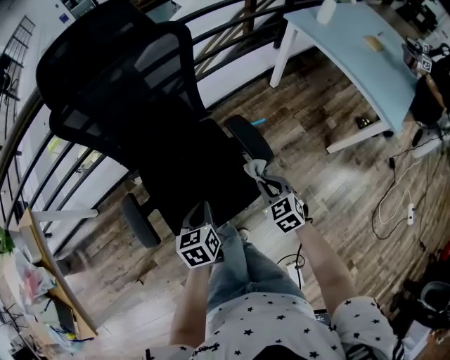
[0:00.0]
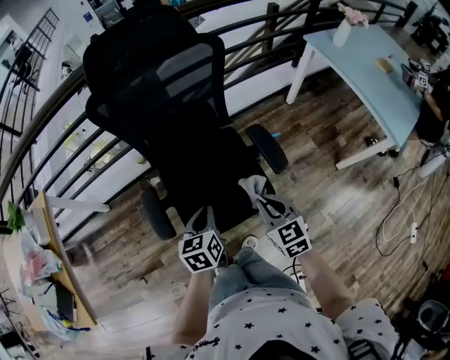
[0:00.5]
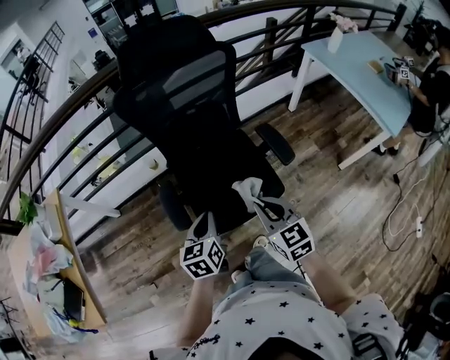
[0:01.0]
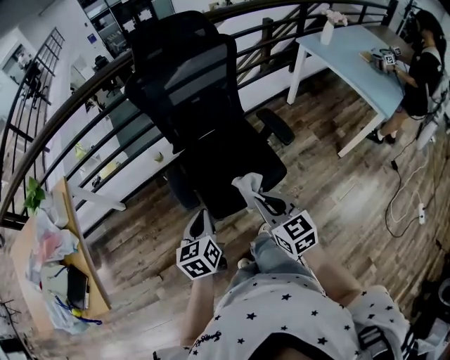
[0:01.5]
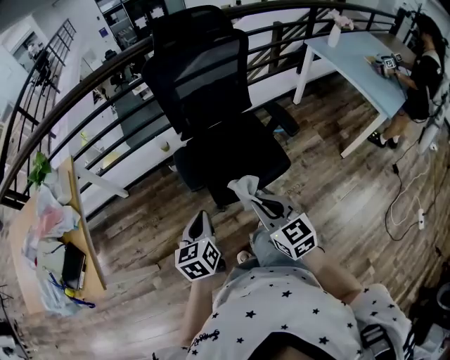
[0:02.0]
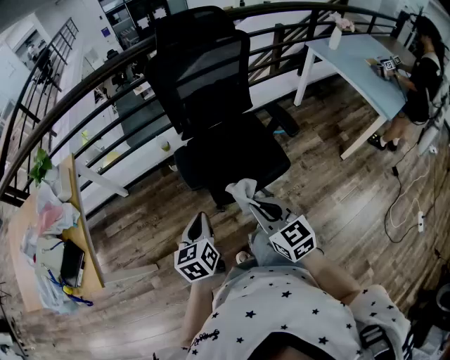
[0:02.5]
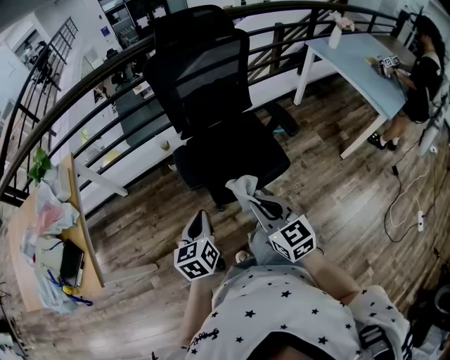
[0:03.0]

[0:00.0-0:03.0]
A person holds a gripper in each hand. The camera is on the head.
0:00.0 to 0:01.5: The right gripper is displaced to the left, upward and backward by some 35 cm, and changes its angle by roughly 30 degrees. The left gripper is displaced to the left, backward and upward by approximately 30 cm.
0:01.5 to 0:03.0: The right gripper is displaced backward and to the left by roughly 10 cm; the left gripper goes about 5 cm backward.

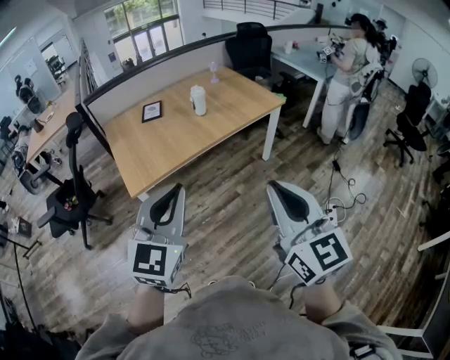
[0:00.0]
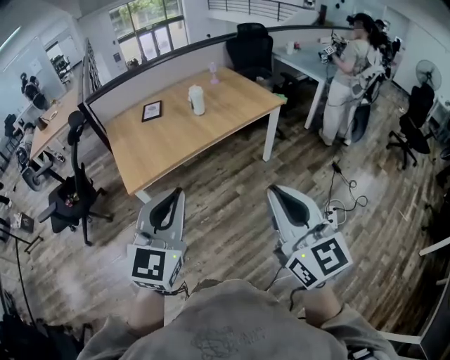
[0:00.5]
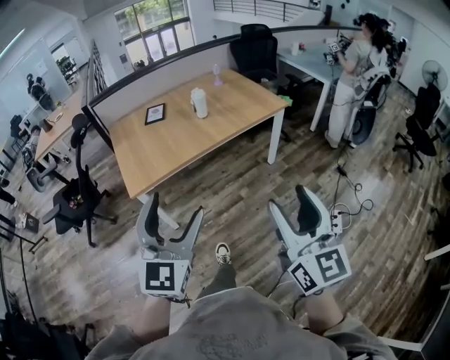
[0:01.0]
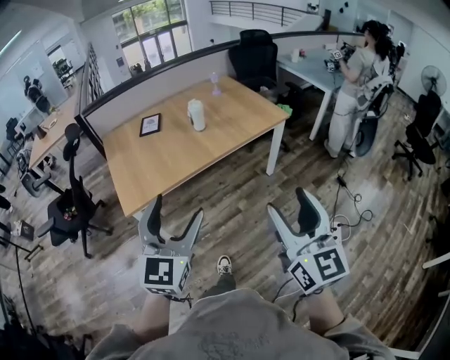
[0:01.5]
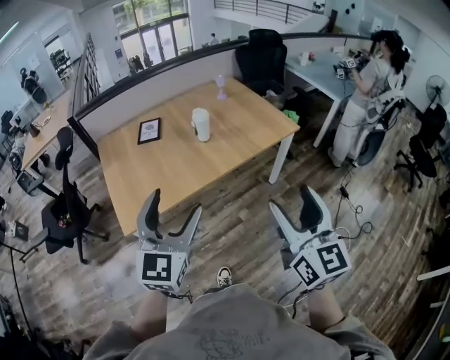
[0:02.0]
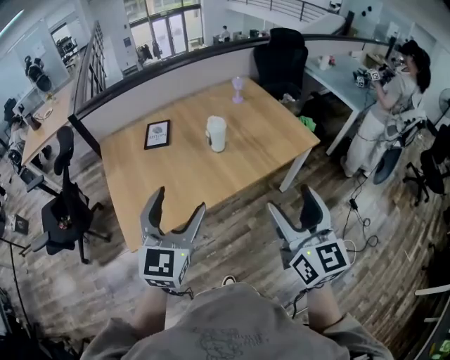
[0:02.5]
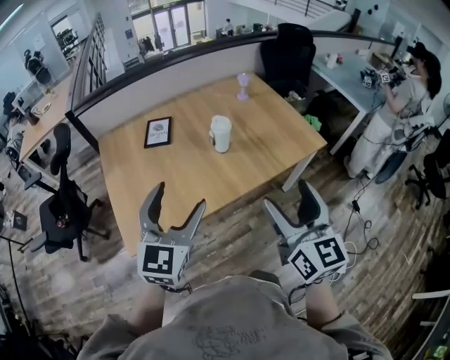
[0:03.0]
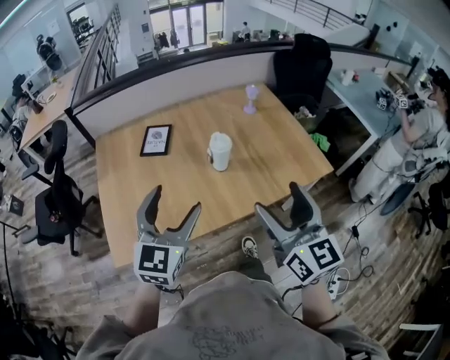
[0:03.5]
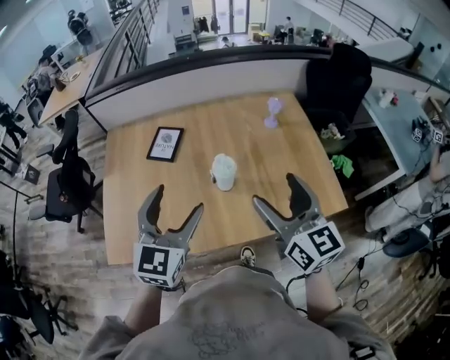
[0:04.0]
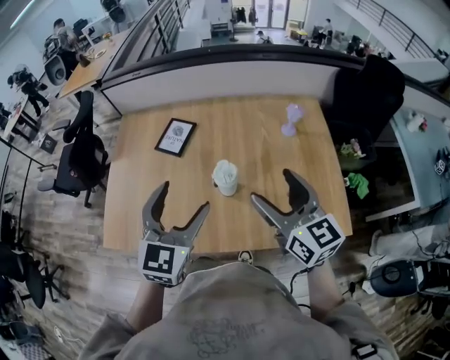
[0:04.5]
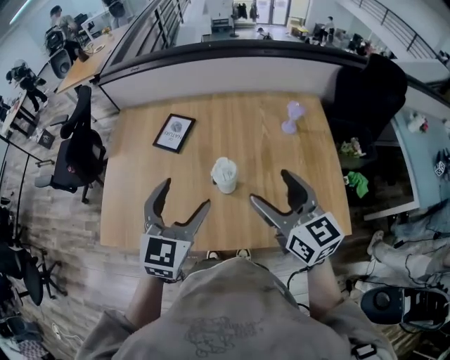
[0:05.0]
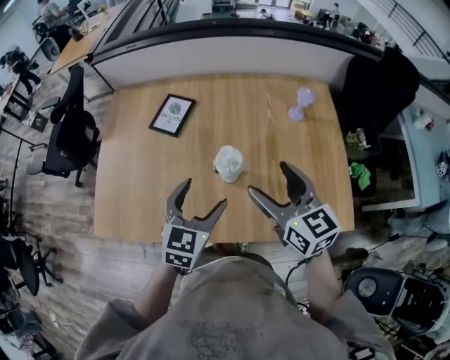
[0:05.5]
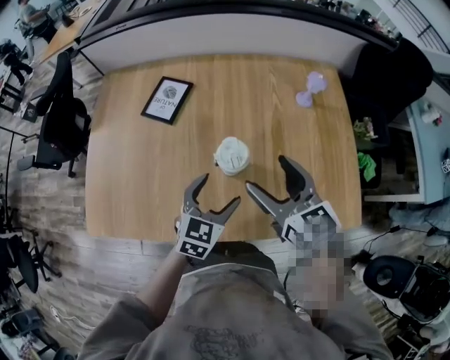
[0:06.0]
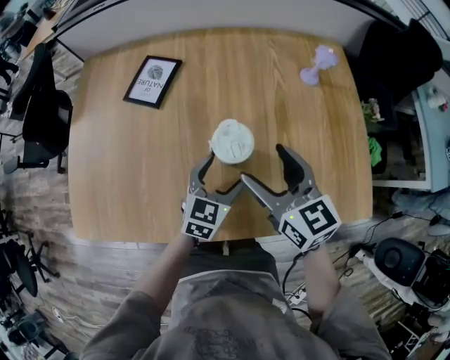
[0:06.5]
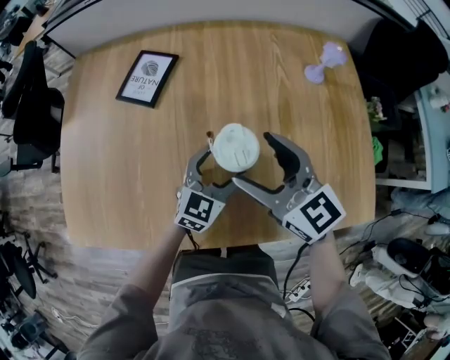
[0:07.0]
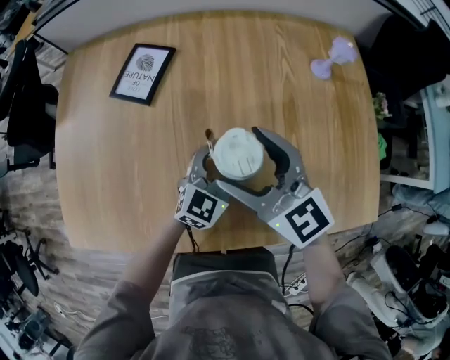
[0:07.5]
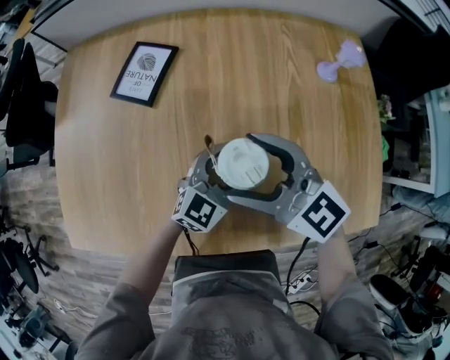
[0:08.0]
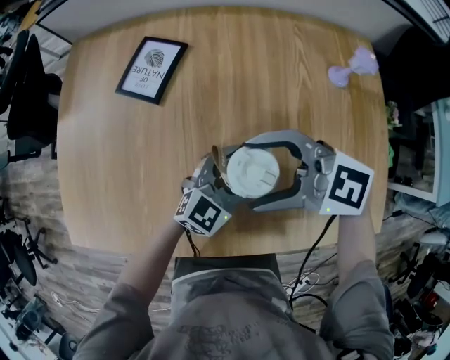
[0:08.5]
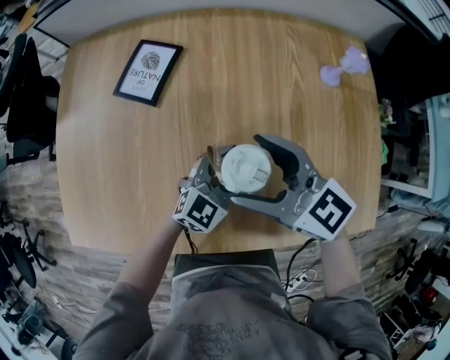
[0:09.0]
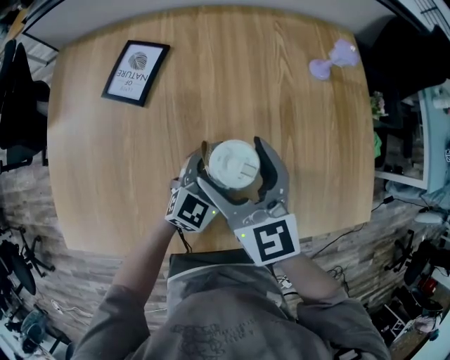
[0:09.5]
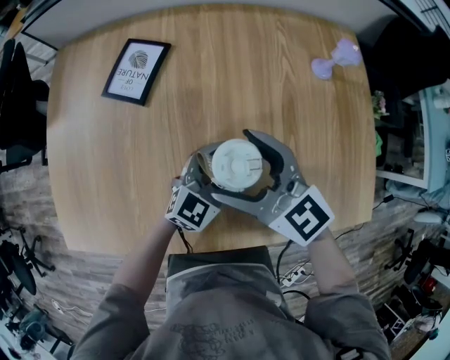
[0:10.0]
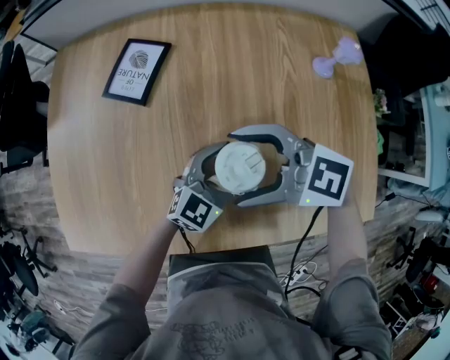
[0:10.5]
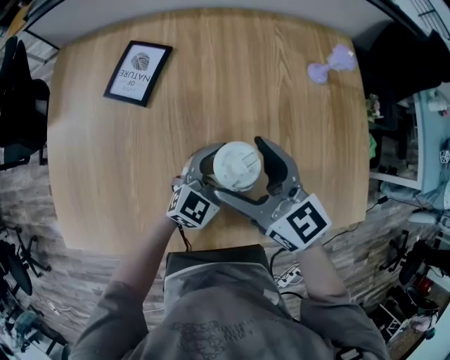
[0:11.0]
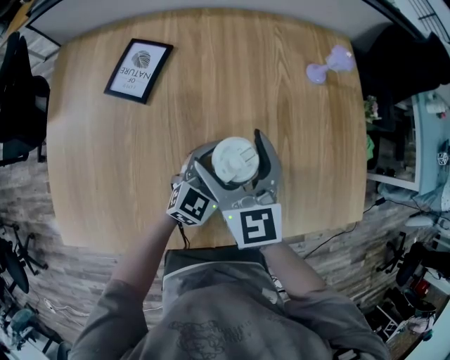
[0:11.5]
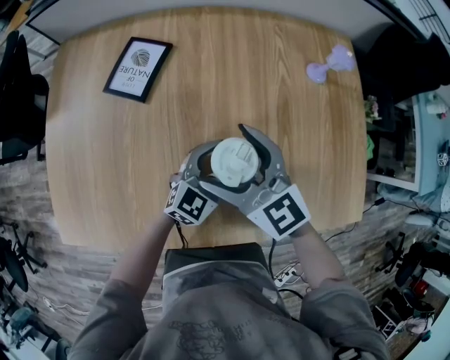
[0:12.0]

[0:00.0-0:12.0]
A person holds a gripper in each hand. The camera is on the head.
0:00.0 to 0:02.0: Both grippers move forward, about 25 cm. The right gripper opens its fingers. The left gripper opens.
0:02.0 to 0:04.0: The two grippers travel together, forward, about 50 cm. The right gripper rotates approximately 30 degrees.
0:04.0 to 0:06.0: The left gripper moves downward and to the right, approximately 25 cm, and swivels about 20 degrees; the right gripper heads downward and forward, covering about 20 cm, and changes its angle by approximately 20 degrees.
0:06.0 to 0:08.0: The left gripper goes roughly 15 cm downward and forward, and swivels approximately 20 degrees. Meanwhile the right gripper shifts roughly 10 cm downward and to the left, and turns by approximately 30 degrees.

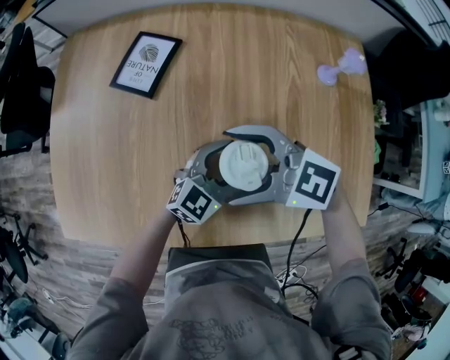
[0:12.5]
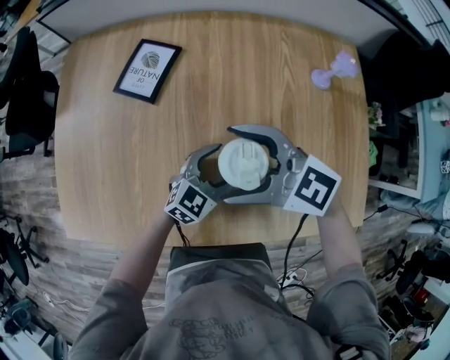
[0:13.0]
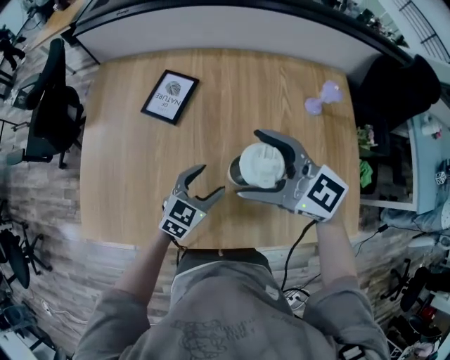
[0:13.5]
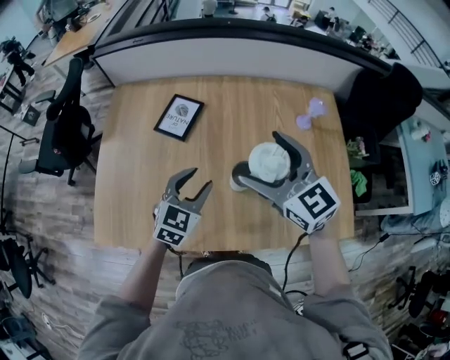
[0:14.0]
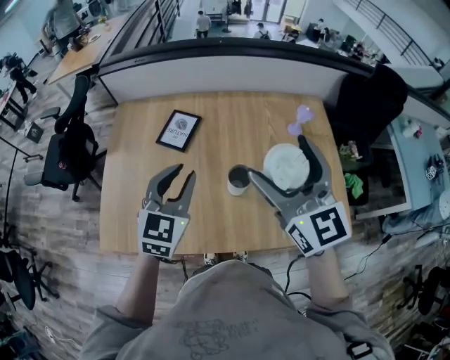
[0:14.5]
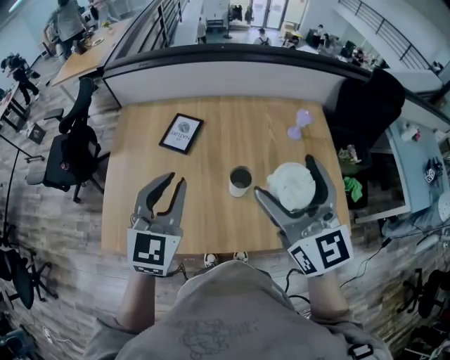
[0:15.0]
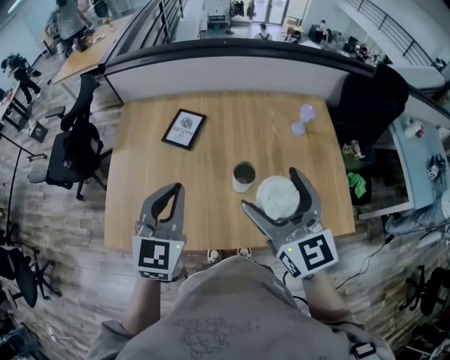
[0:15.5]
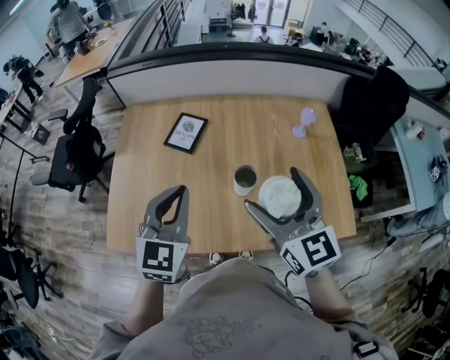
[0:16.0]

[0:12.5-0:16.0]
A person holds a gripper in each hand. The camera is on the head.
0:12.5 to 0:14.5: The two grippers go approximately 30 cm upward. The left gripper swivels approximately 30 degrees, and closes up, while the right gripper swivels about 60 degrees.
0:14.5 to 0:16.0: Both grippers travel together backward, some 5 cm.

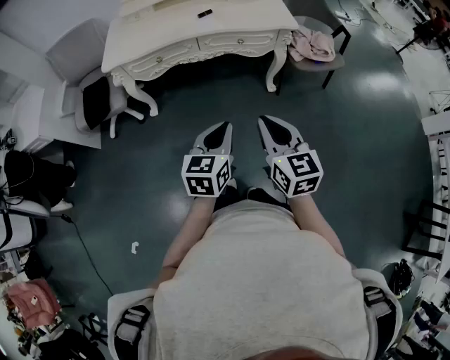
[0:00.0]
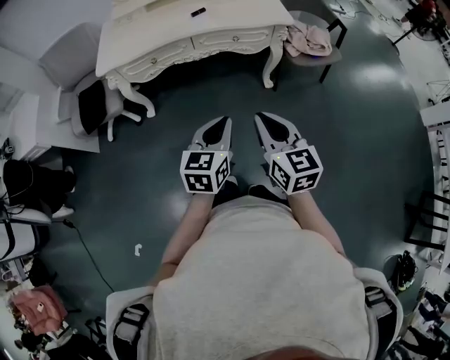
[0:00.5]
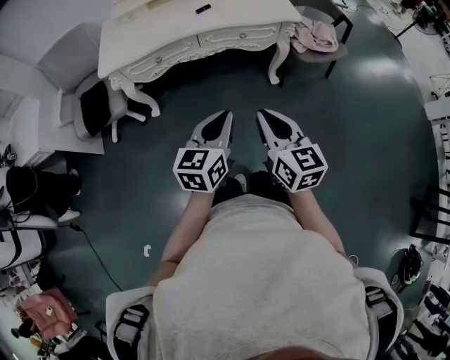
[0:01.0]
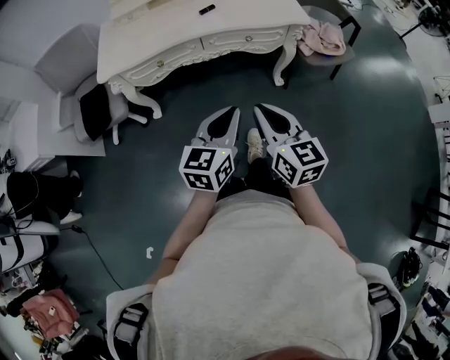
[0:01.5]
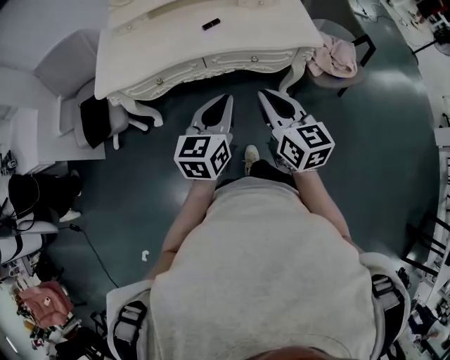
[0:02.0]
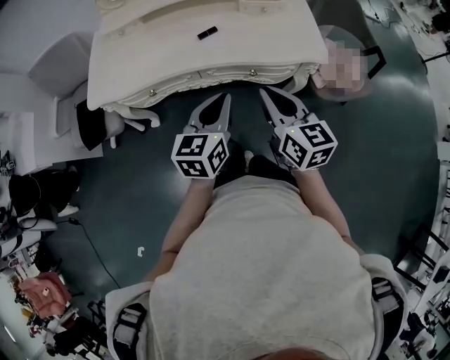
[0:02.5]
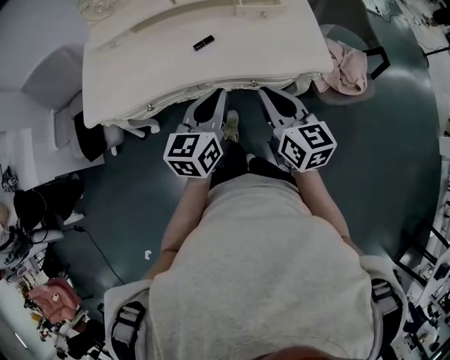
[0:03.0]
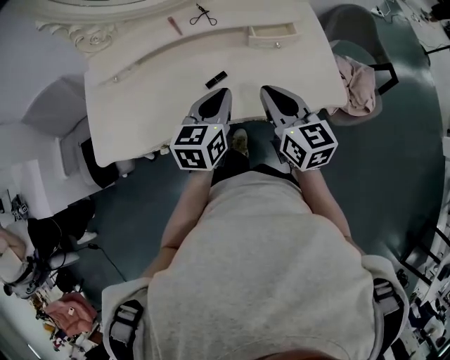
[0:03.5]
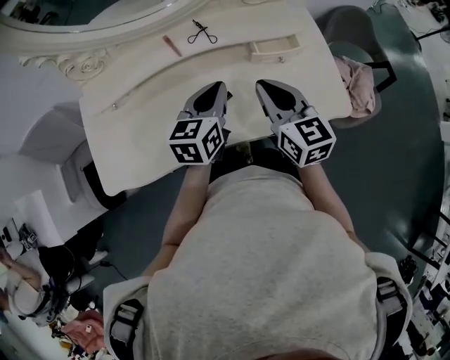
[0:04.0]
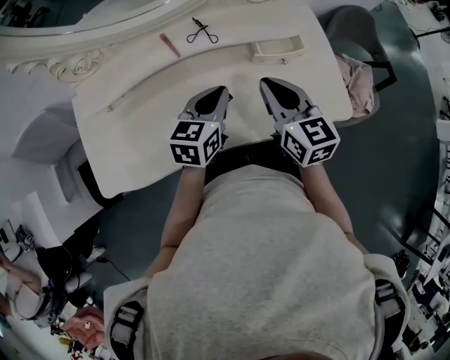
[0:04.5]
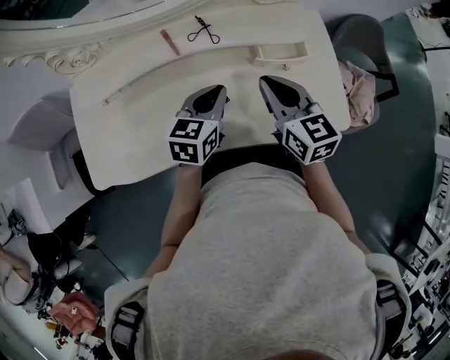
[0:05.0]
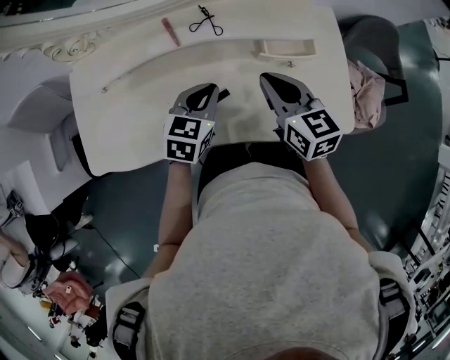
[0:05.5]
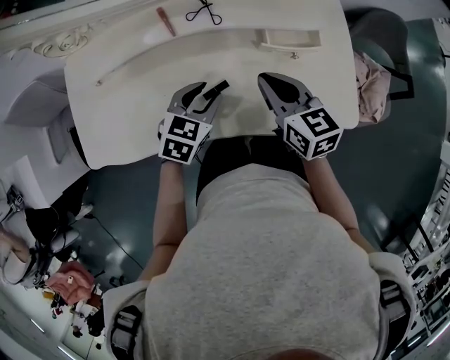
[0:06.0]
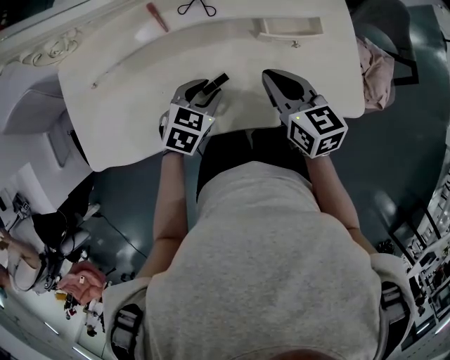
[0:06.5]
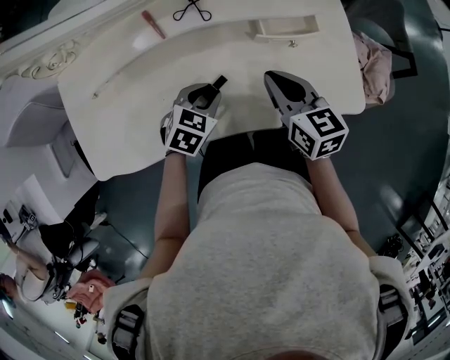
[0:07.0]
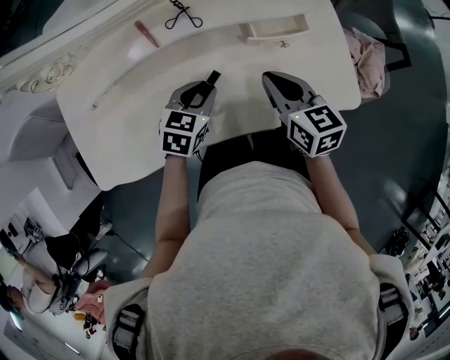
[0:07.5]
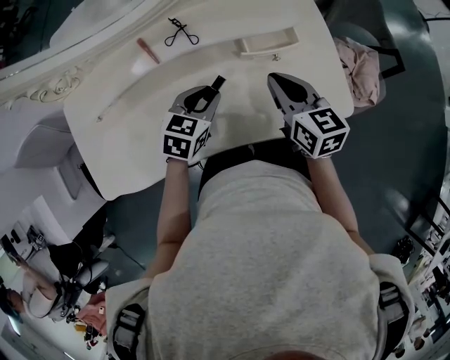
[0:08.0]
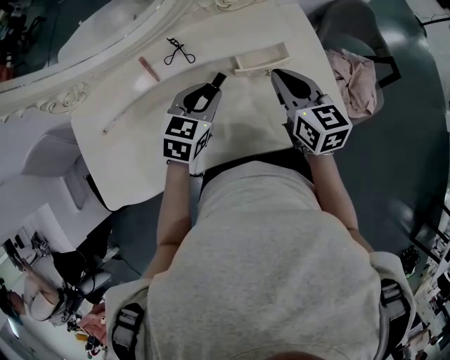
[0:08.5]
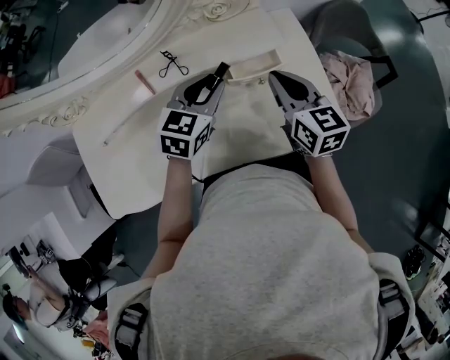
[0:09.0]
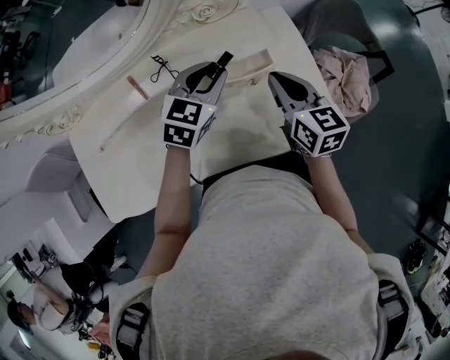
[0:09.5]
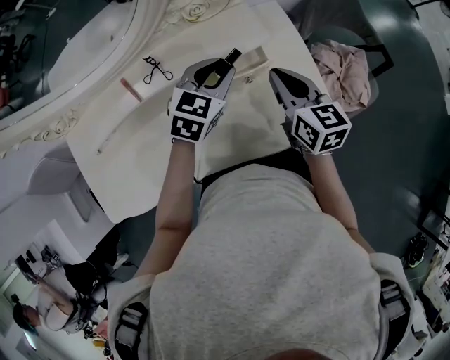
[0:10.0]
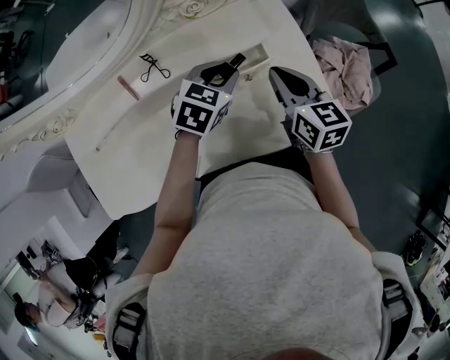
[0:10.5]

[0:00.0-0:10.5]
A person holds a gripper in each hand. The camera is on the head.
0:00.0 to 0:02.0: Both grippers travel together forward, roughly 25 cm.
0:02.0 to 0:04.0: Both grippers travel together forward, approximately 40 cm.
0:04.0 to 0:06.5: The right gripper travels downward by roughly 10 cm. Meanwhile the left gripper heads downward, covering roughly 15 cm, tips its fingers downward by some 30 degrees, and opens up.
0:06.5 to 0:08.5: The right gripper heads to the right, forward and upward, covering approximately 10 cm. The left gripper moves forward and upward, some 15 cm.
0:08.5 to 0:10.5: The left gripper is displaced to the right and forward by approximately 10 cm, while the right gripper goes approximately 5 cm to the right.
